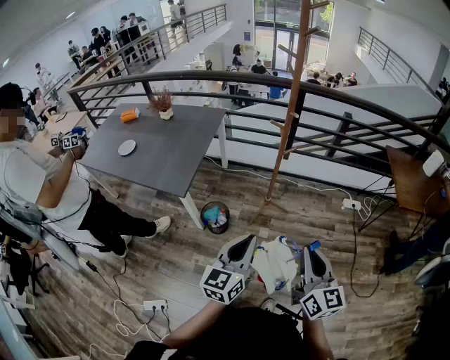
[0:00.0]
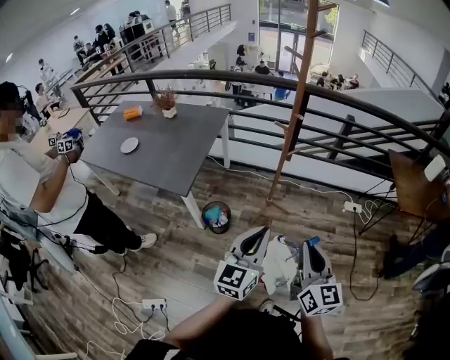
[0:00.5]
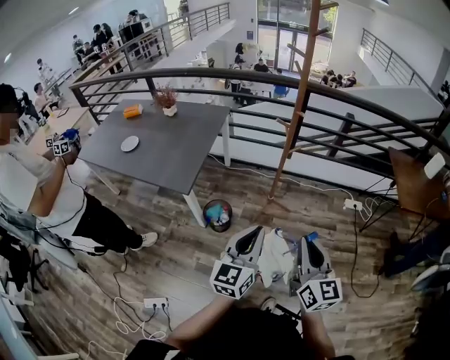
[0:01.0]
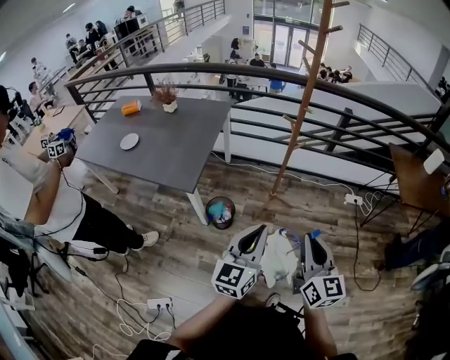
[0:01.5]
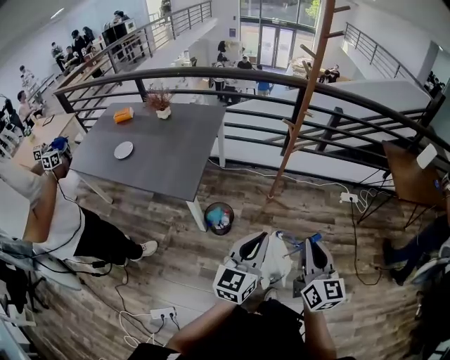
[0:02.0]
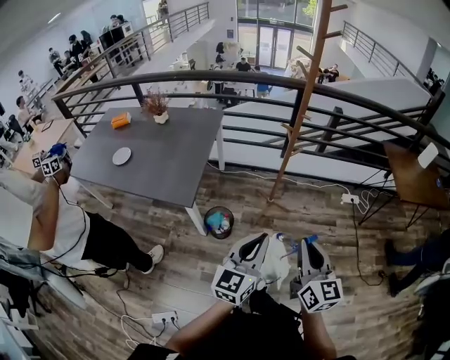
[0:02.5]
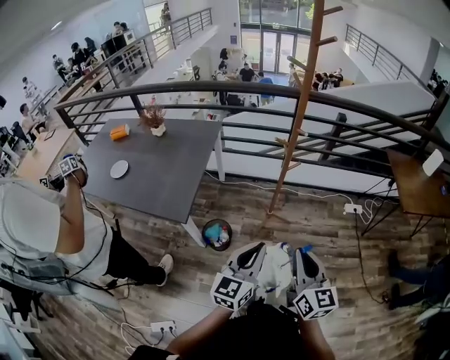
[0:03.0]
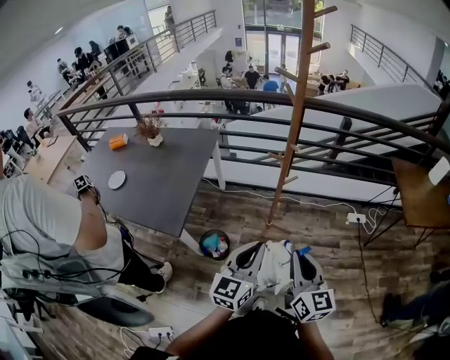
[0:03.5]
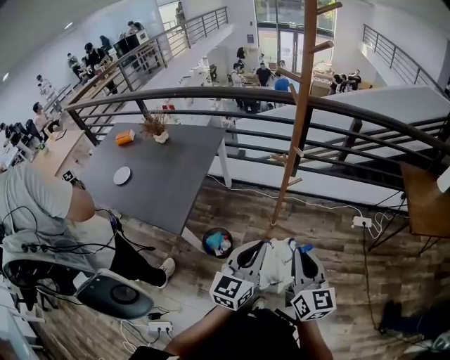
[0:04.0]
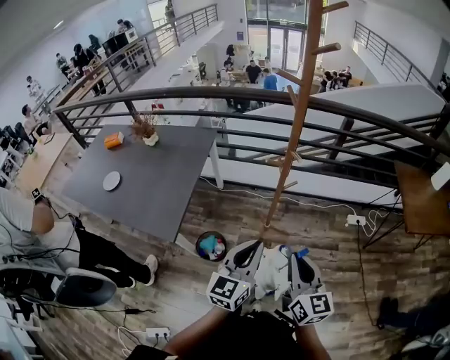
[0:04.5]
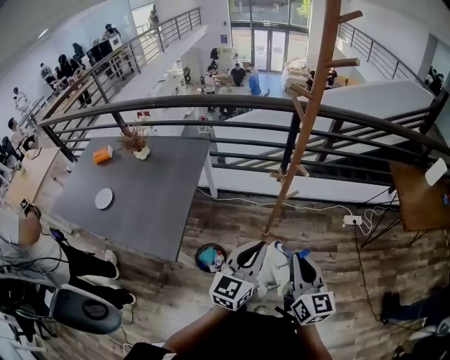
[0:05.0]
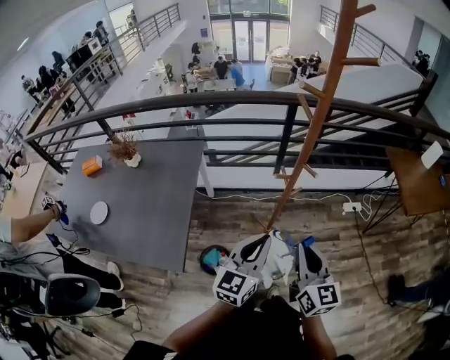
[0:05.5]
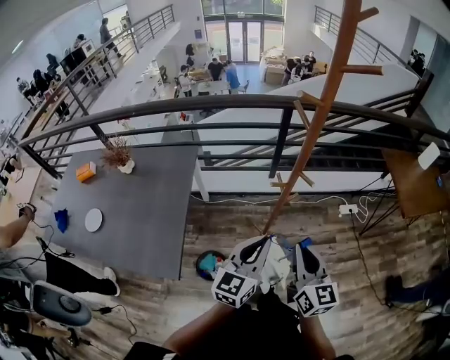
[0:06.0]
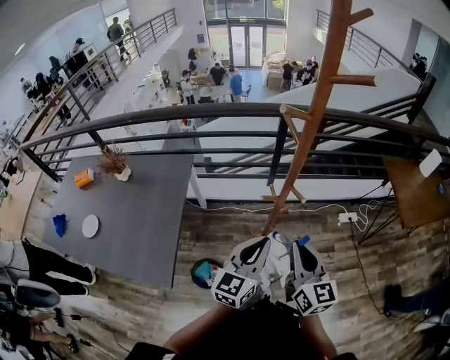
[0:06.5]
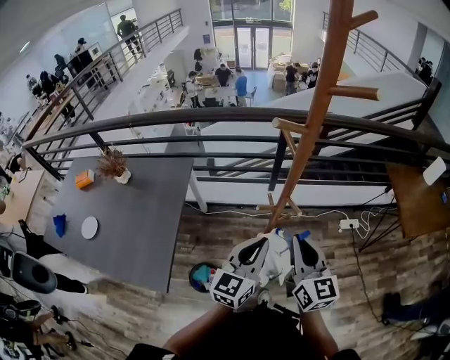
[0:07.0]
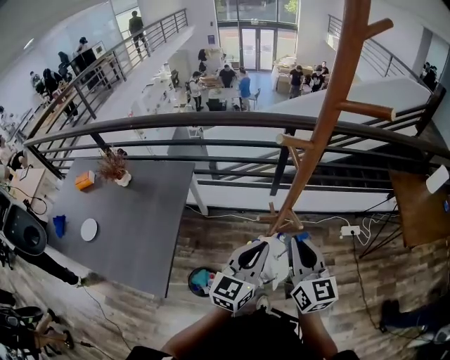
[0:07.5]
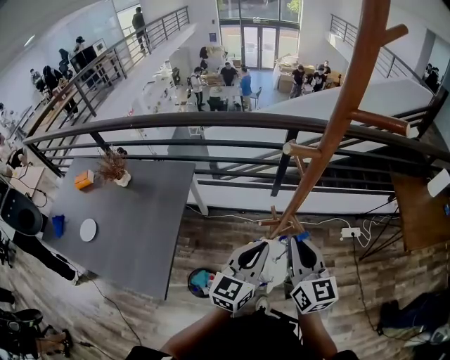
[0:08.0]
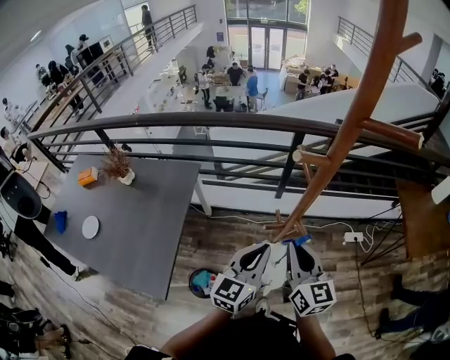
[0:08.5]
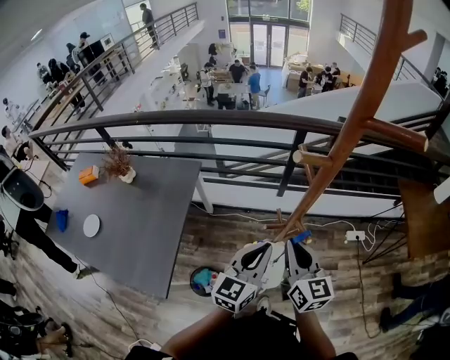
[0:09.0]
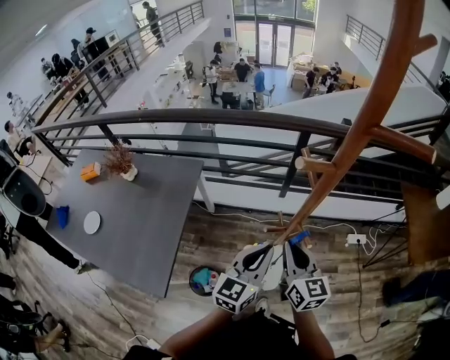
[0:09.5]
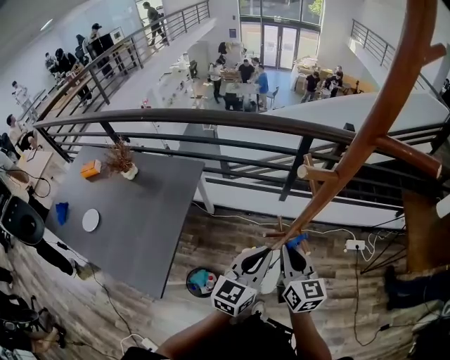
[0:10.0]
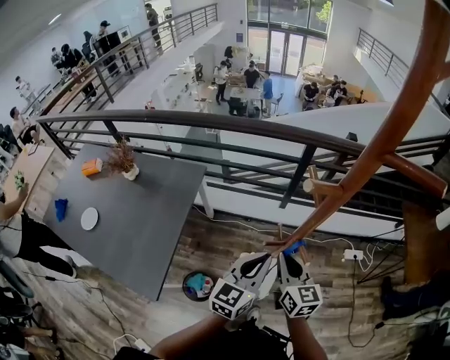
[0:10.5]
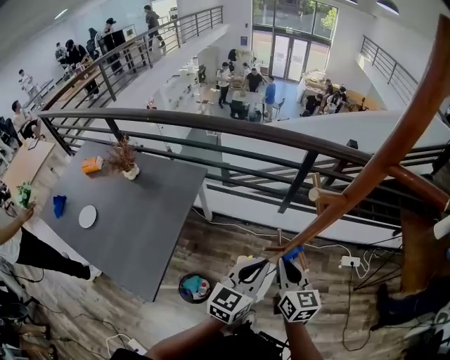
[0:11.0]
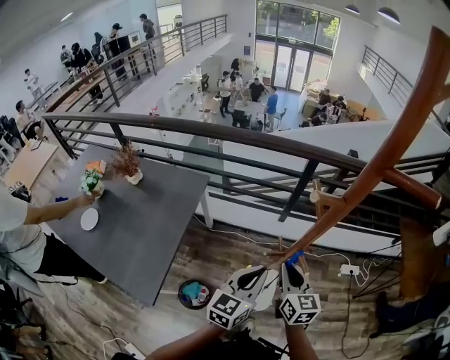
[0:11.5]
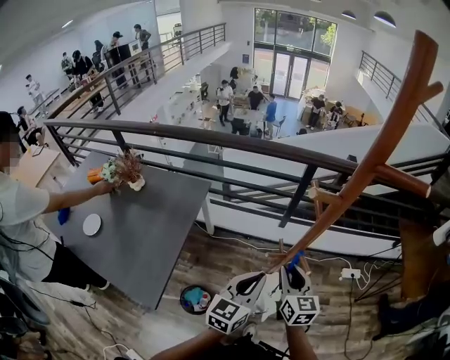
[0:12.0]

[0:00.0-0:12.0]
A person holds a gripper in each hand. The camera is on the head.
0:00.0 to 0:02.0: The right gripper goes approximately 10 cm to the left. Meanwhile the left gripper is displaced to the left by some 5 cm.
0:02.0 to 0:04.0: The left gripper moves forward and to the right, approximately 20 cm; the right gripper shifts about 20 cm forward.
0:04.0 to 0:06.0: The grippers both shift forward and to the left by some 15 cm.
0:06.0 to 0:08.0: Both grippers travel together forward, about 15 cm.
0:08.0 to 0:10.0: The right gripper travels downward by approximately 5 cm.
0:10.0 to 0:12.0: The grippers move only a little.

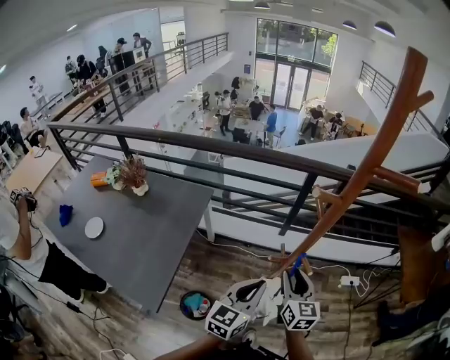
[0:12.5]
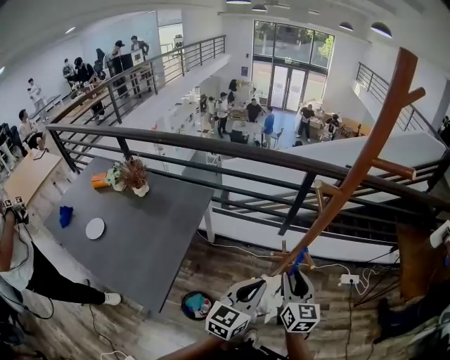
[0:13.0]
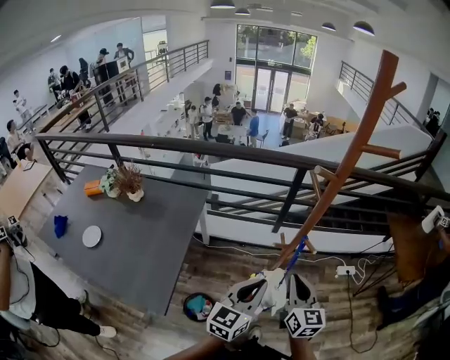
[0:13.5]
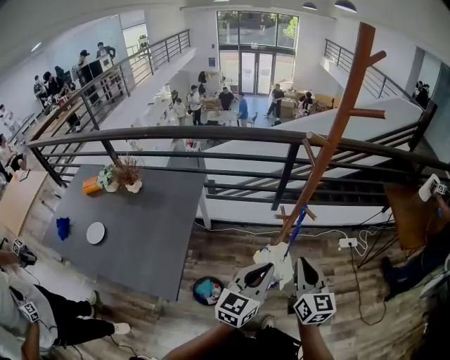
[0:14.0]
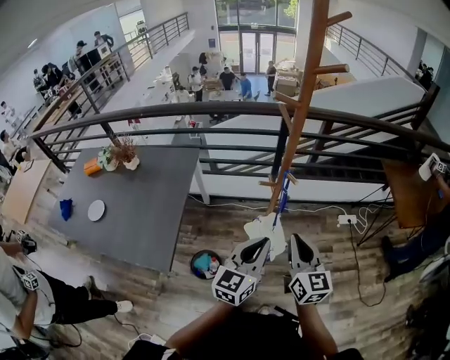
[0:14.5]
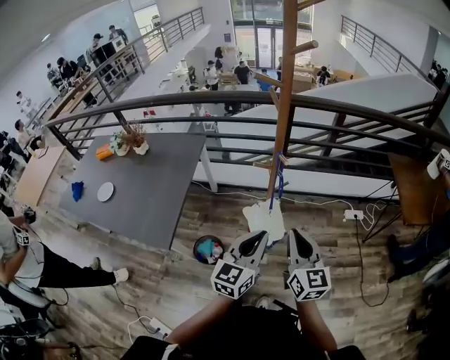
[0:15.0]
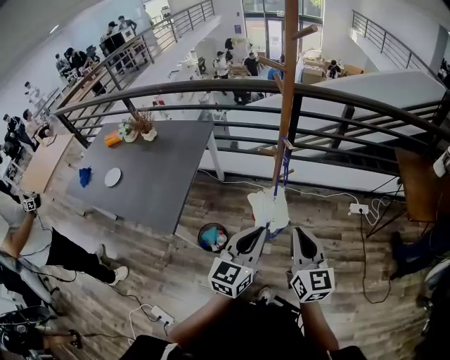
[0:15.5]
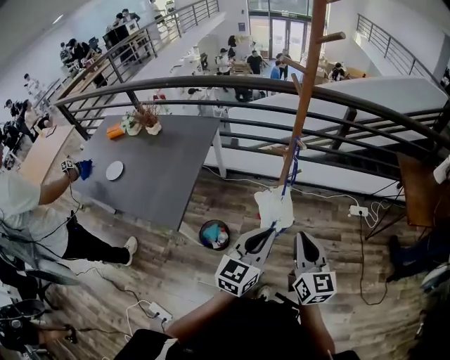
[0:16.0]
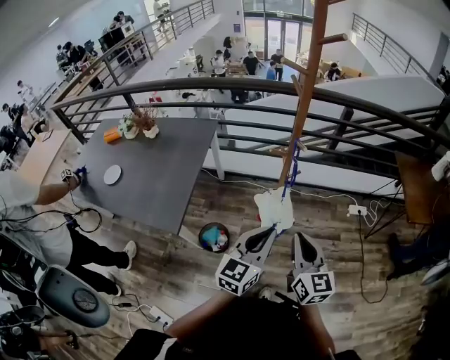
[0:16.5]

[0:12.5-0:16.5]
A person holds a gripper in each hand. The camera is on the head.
0:12.5 to 0:14.5: The two grippers go roughly 15 cm backward. The right gripper closes.
0:14.5 to 0:16.5: The two grippers go some 10 cm backward.

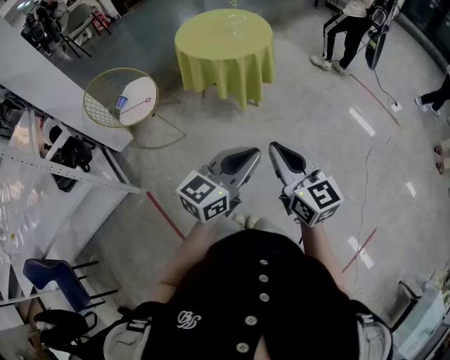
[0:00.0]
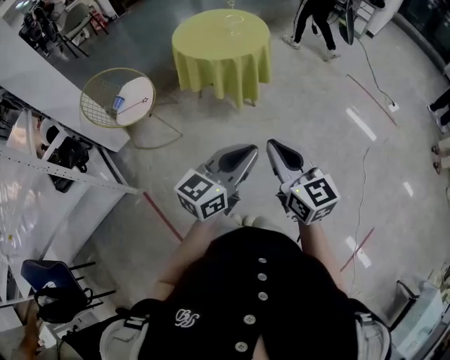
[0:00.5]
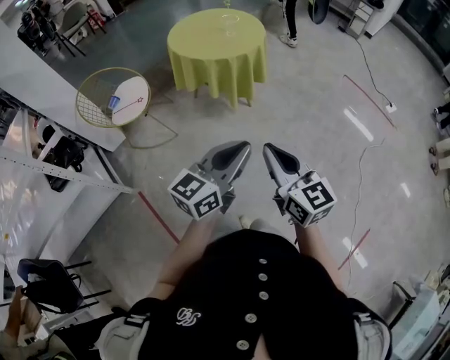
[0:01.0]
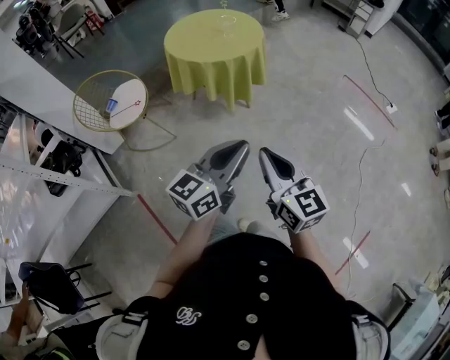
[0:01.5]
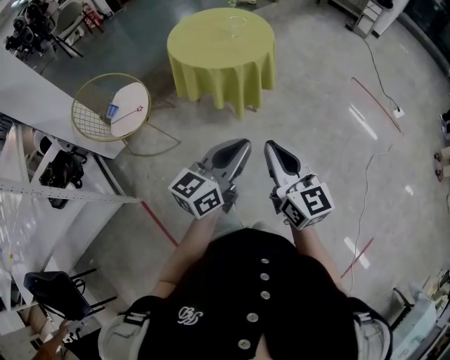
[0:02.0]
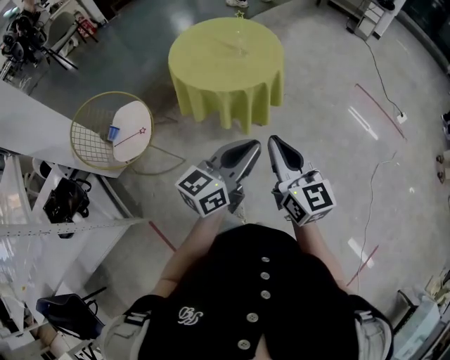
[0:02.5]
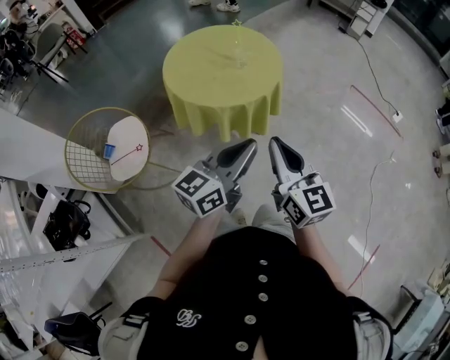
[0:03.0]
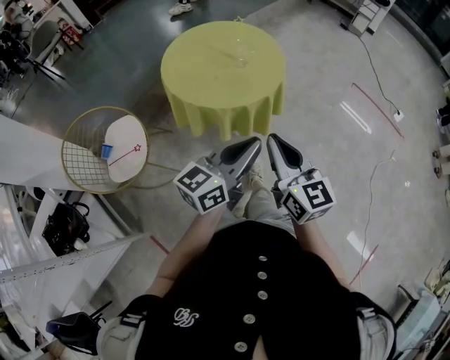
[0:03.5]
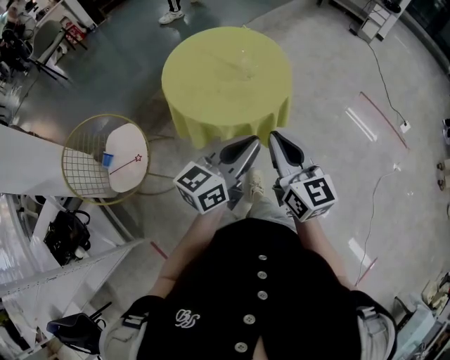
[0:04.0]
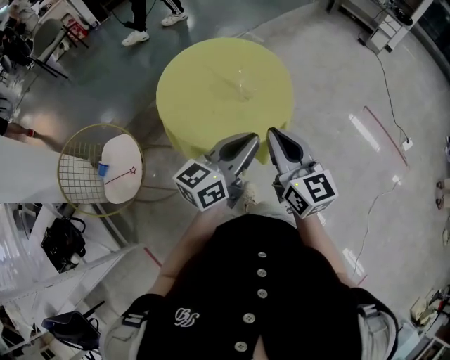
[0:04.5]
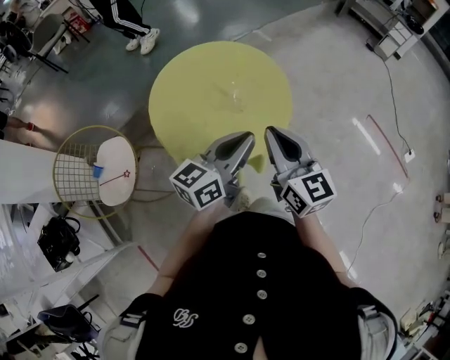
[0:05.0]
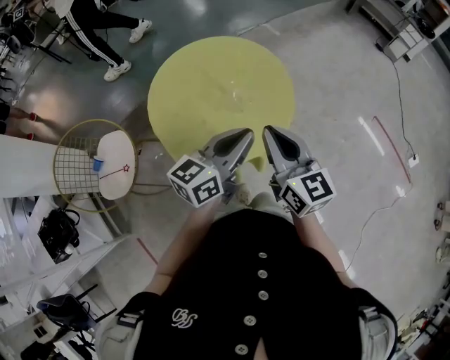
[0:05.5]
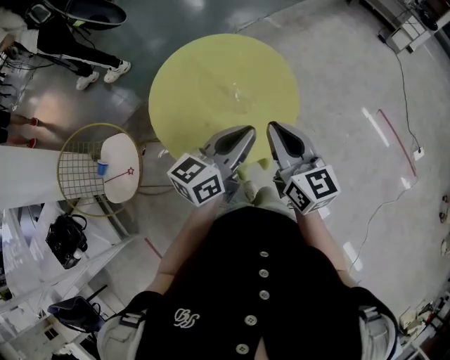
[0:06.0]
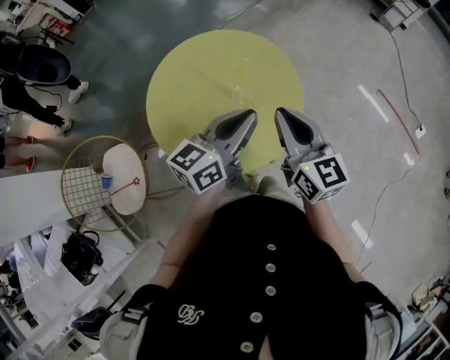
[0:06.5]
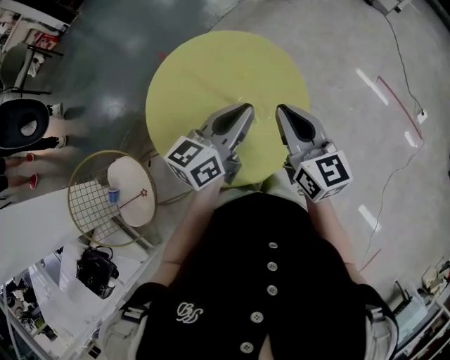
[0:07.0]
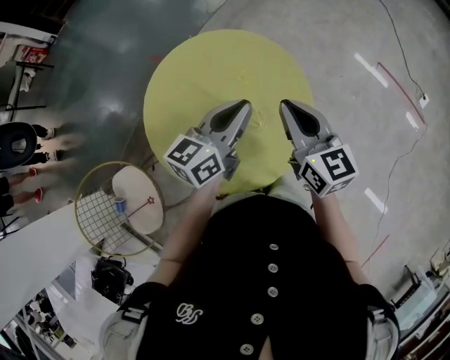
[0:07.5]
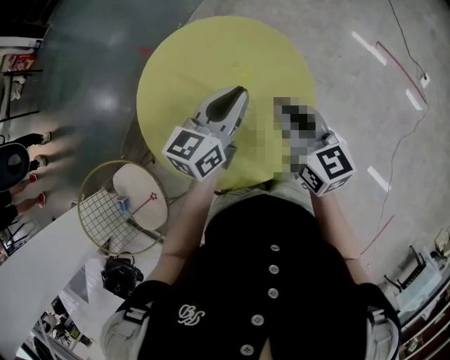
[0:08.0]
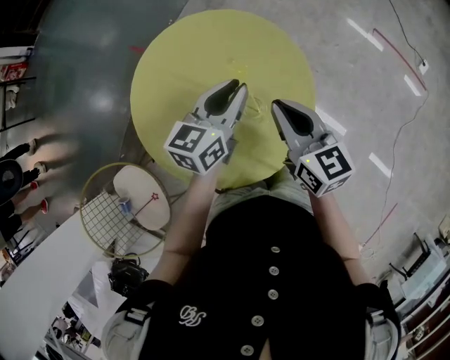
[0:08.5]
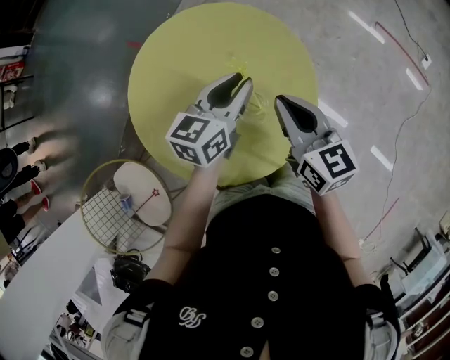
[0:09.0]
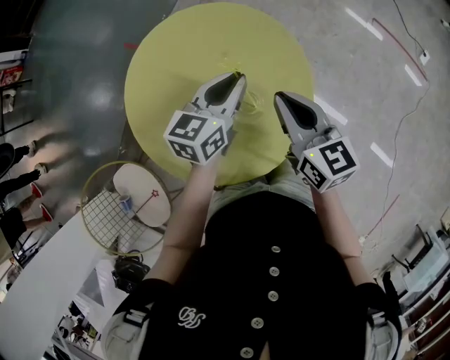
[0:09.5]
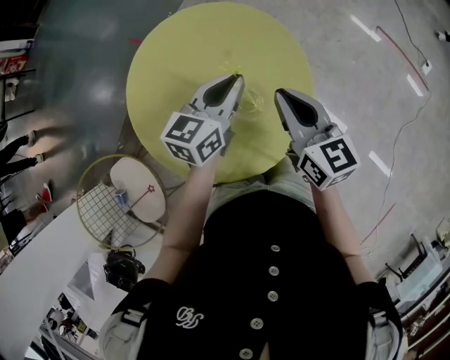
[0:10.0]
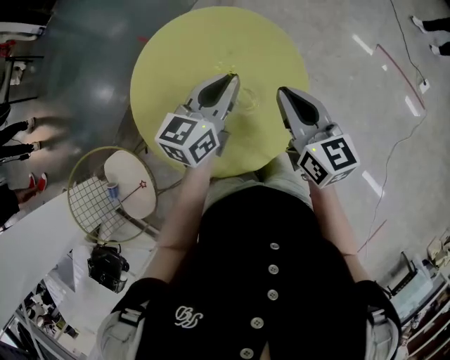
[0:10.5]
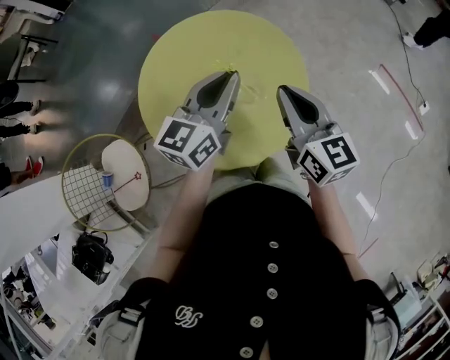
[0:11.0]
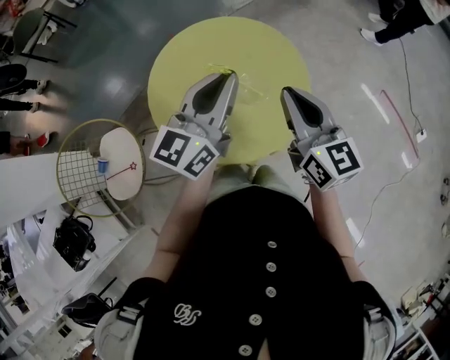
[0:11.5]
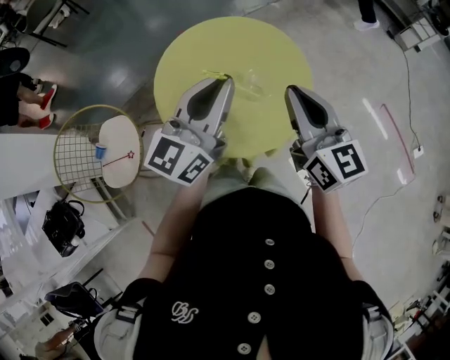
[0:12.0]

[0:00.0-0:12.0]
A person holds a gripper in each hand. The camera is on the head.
0:00.0 to 0:02.0: The grippers both shift forward by about 15 cm.
0:02.0 to 0:04.0: The grippers both shift forward by roughly 30 cm.
0:04.0 to 0:06.0: The grippers both shift forward by about 20 cm.
0:06.0 to 0:08.0: The left gripper goes roughly 20 cm forward, to the left and downward. The right gripper travels forward, downward and to the left by some 15 cm.
0:08.0 to 0:10.0: The grippers stay close to where they were, moving slightly.
0:10.0 to 0:12.0: The left gripper moves upward and backward, approximately 25 cm, and changes its angle by some 40 degrees; the right gripper moves upward and backward, approximately 15 cm, and turns by about 30 degrees.
